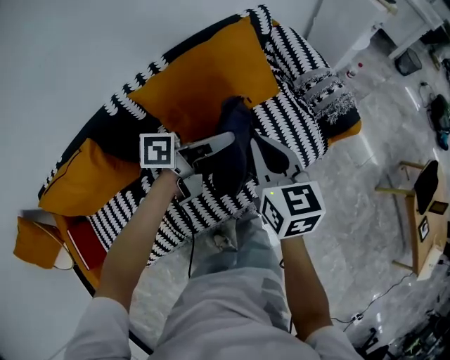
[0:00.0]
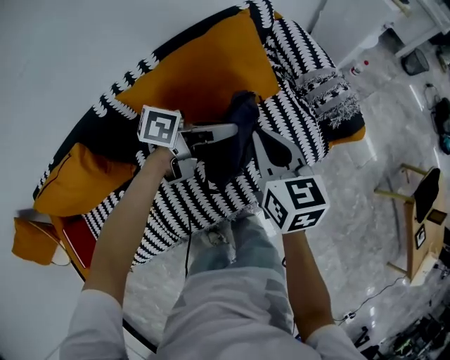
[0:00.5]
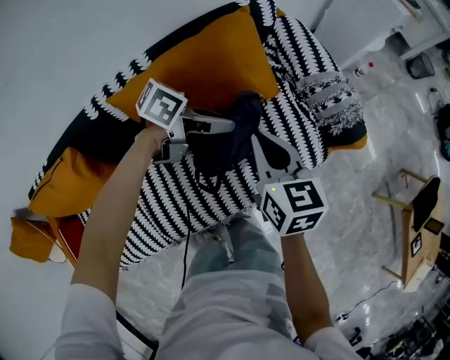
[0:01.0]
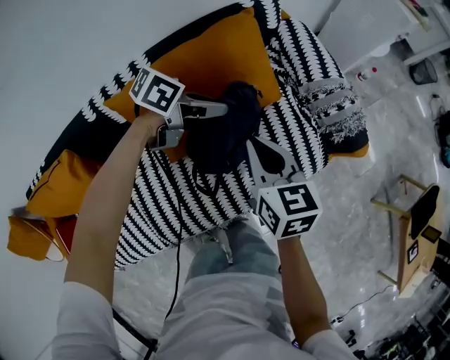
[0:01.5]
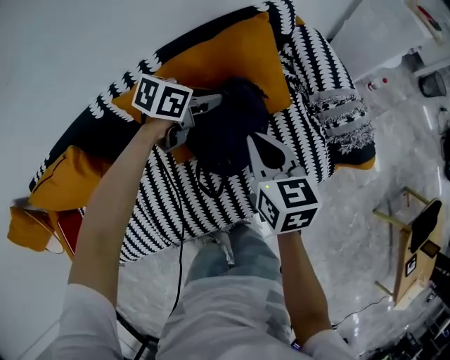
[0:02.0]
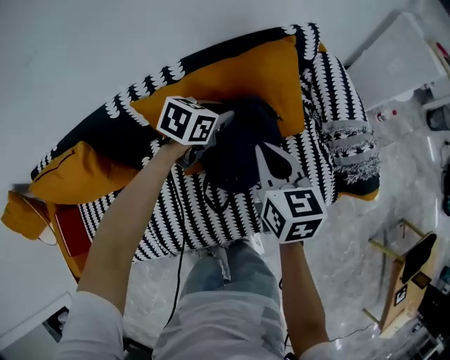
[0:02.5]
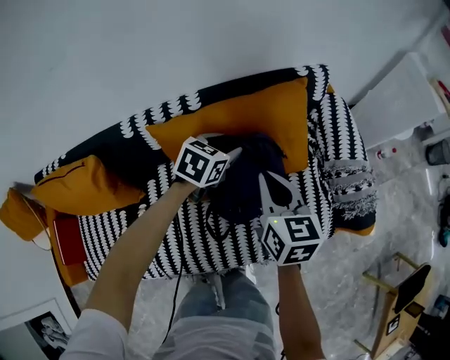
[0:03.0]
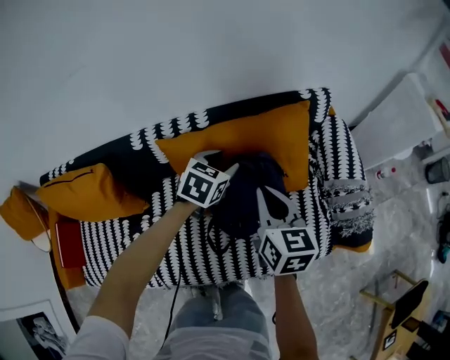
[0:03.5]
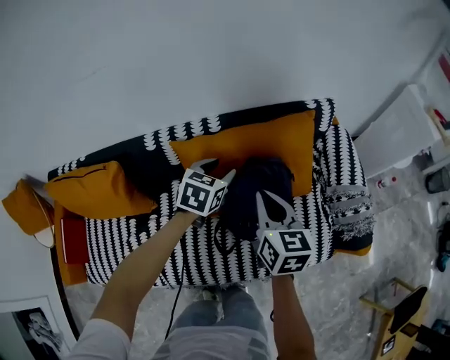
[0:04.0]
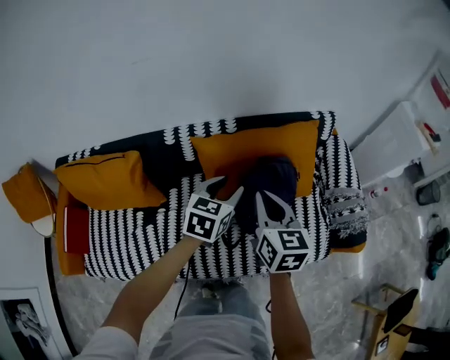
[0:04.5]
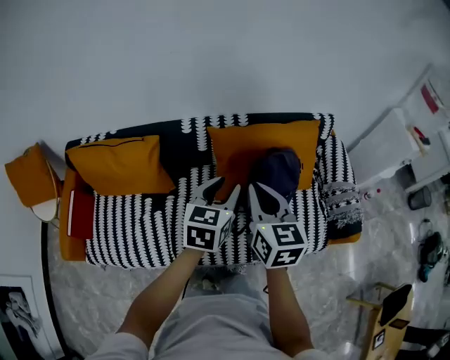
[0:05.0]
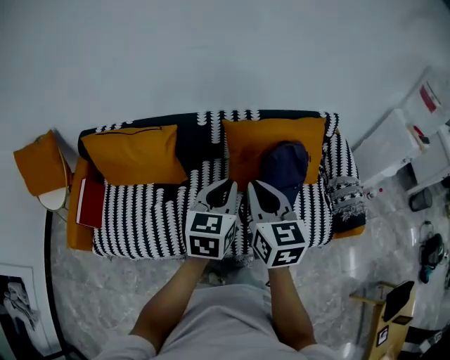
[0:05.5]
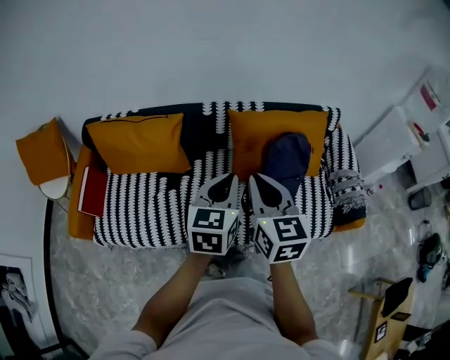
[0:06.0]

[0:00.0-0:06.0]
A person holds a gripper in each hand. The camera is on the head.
0:00.0 to 0:02.0: The right gripper travels forward, downward and to the left by about 15 cm; the left gripper moves forward, downward and to the left, some 25 cm, and points its fingers about 30 degrees further downward.
0:02.0 to 0:04.0: The left gripper ends up roughly 15 cm from where it was, turns by approximately 40 degrees, and opens, while the right gripper moves roughly 10 cm.
0:04.0 to 0:06.0: The left gripper travels backward, upward and to the left by roughly 40 cm, rotates some 30 degrees, and closes, while the right gripper travels backward, to the left and upward by approximately 35 cm.

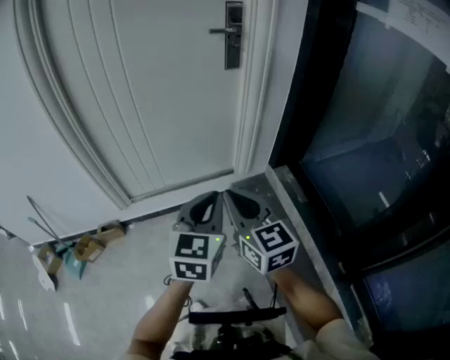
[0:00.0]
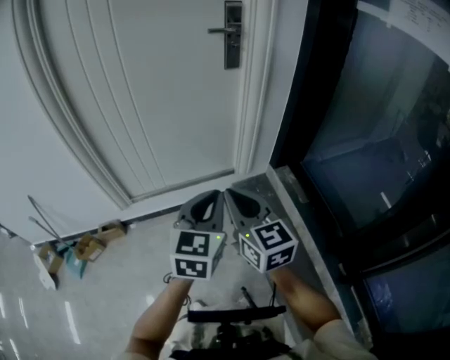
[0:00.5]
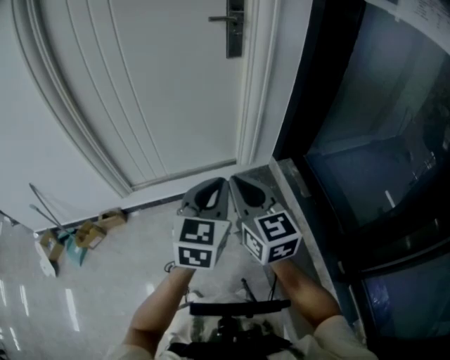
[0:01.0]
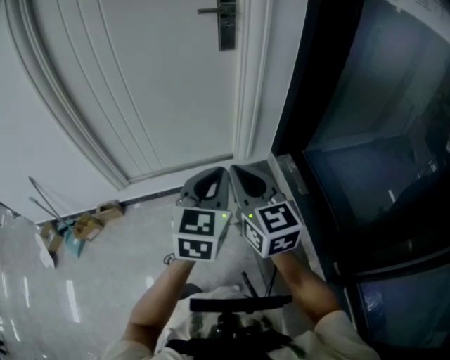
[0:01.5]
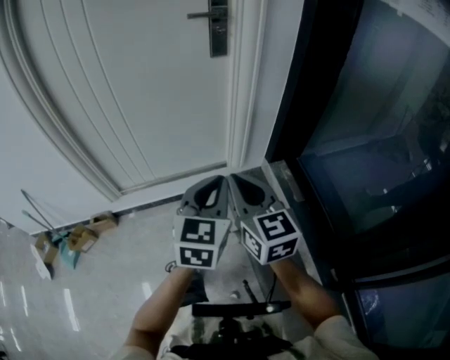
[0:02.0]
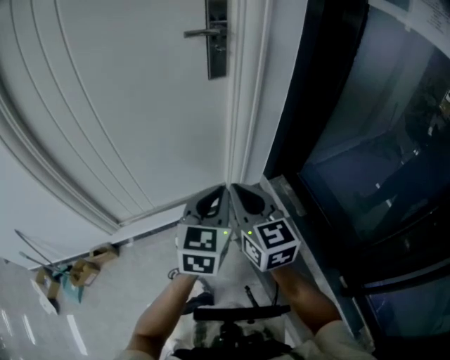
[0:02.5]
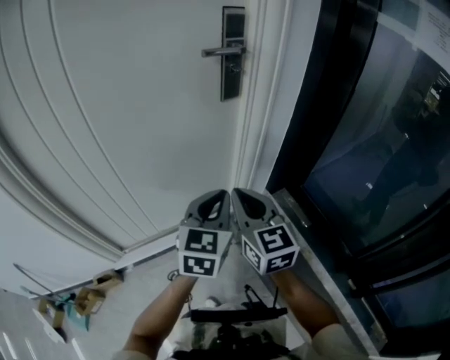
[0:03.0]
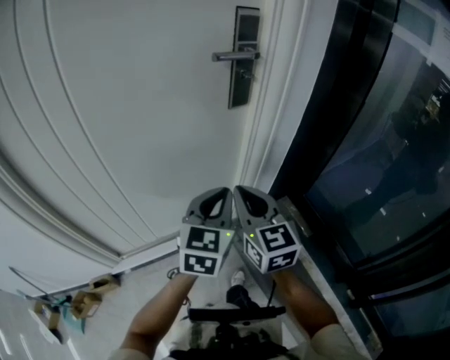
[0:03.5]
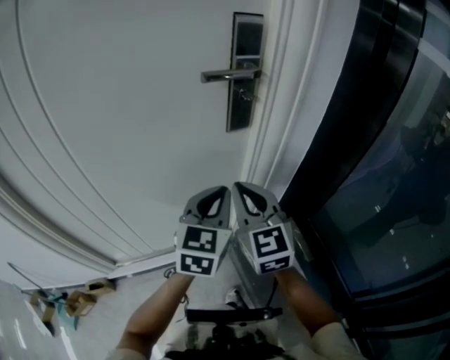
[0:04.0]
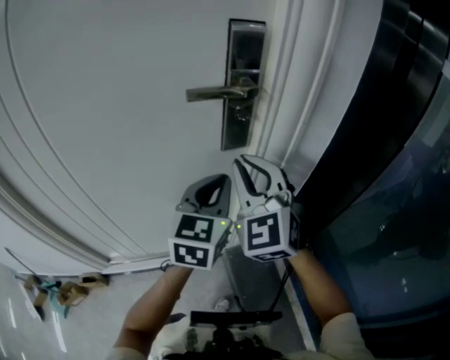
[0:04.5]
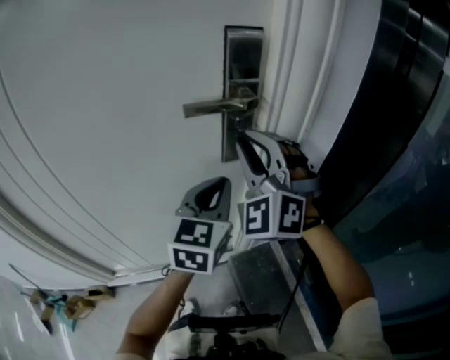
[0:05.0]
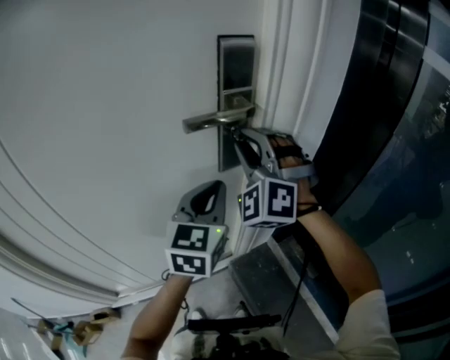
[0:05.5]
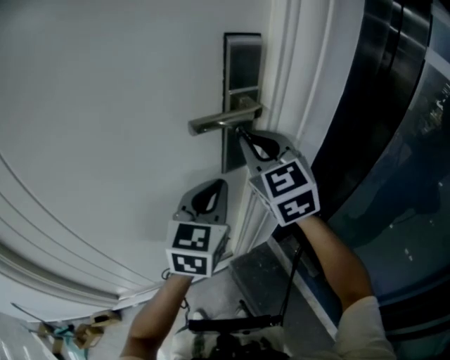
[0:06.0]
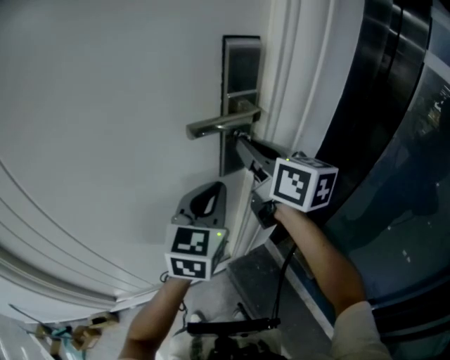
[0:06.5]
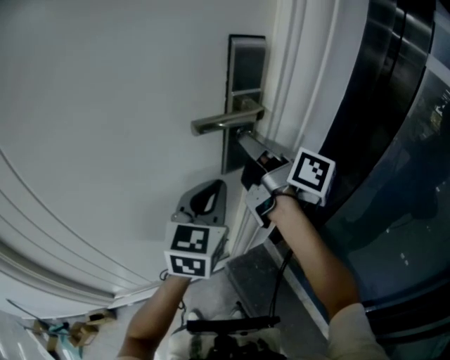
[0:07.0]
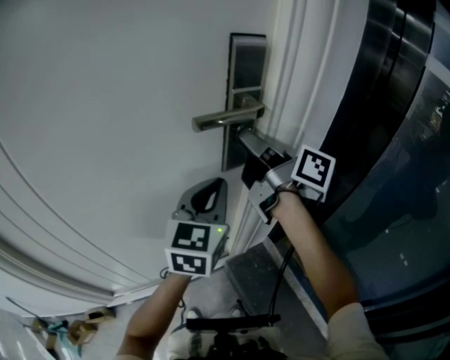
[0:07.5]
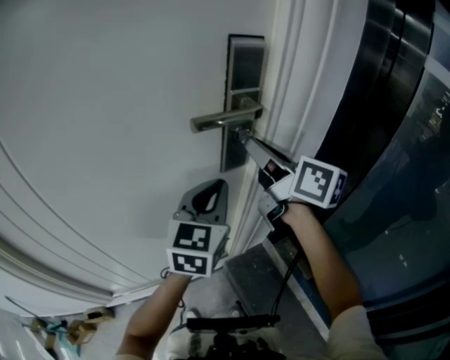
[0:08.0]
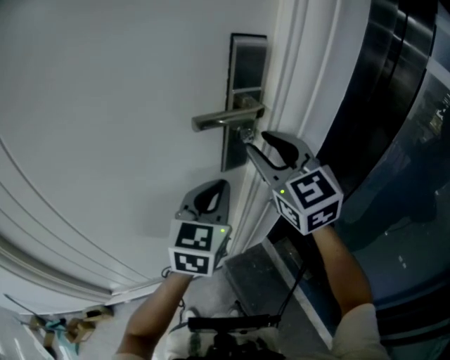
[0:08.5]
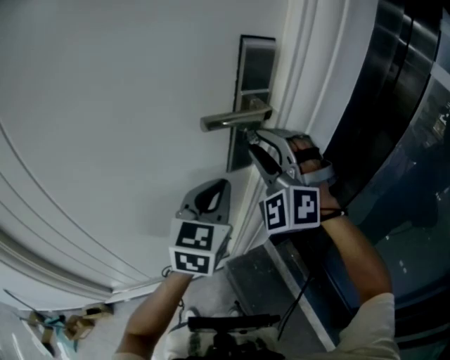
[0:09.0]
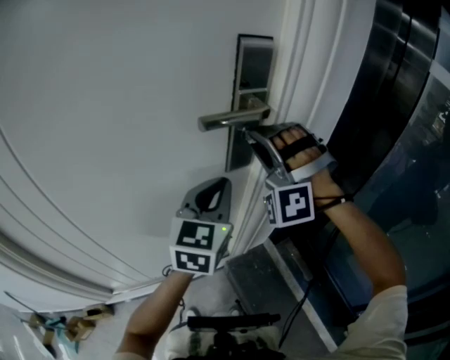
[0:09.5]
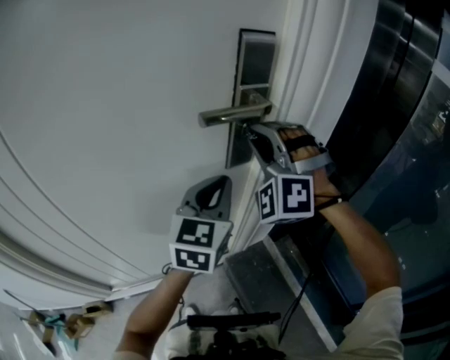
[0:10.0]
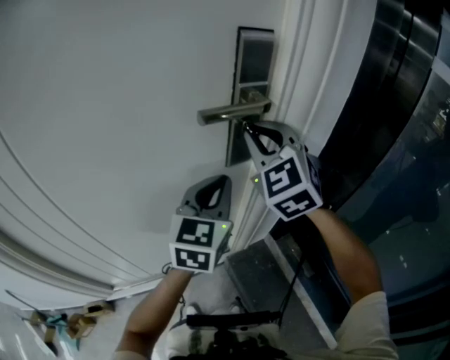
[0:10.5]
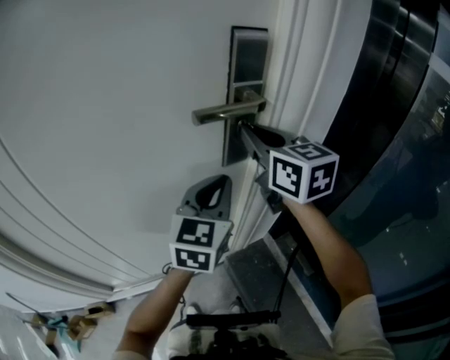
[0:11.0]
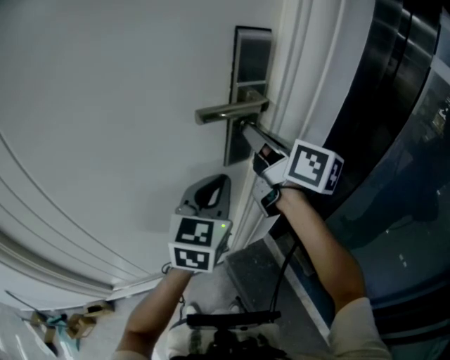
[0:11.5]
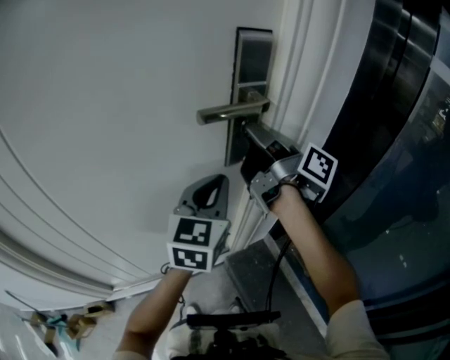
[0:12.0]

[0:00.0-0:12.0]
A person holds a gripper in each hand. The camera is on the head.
0:00.0 to 0:02.0: Both grippers move to the right and forward, some 10 cm.
0:02.0 to 0:04.0: Both grippers move forward, some 30 cm.
0:04.0 to 0:06.0: The right gripper travels forward and upward by about 20 cm. Meanwhile the left gripper heads forward and upward, covering approximately 15 cm.
0:06.0 to 0:08.0: The right gripper rolls clockwise, seen from behind, by about 60 degrees.
0:08.0 to 0:10.0: The right gripper rotates around the line of its fingers by about 120 degrees, counterclockwise from behind.
0:10.0 to 0:12.0: The right gripper rotates around the line of its fingers by roughly 160 degrees, clockwise from behind.

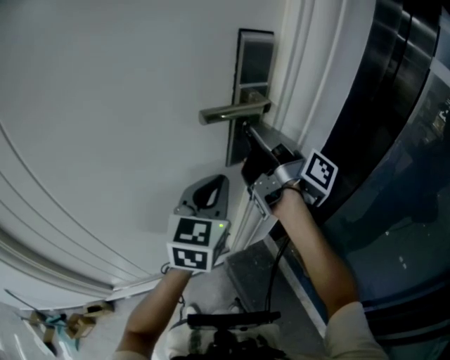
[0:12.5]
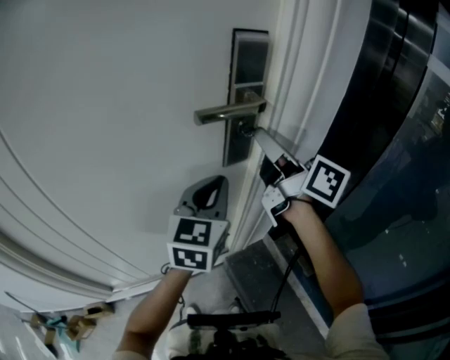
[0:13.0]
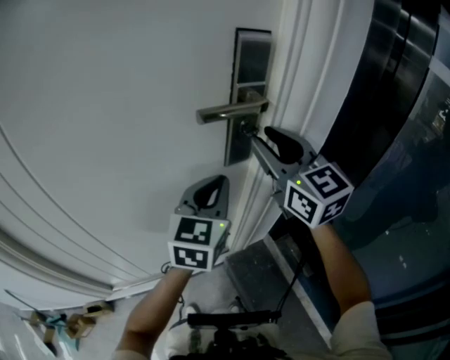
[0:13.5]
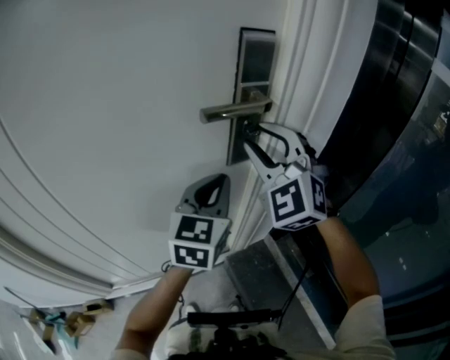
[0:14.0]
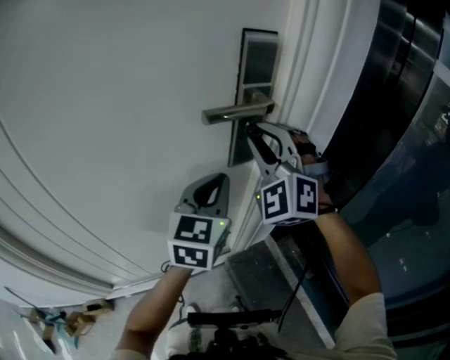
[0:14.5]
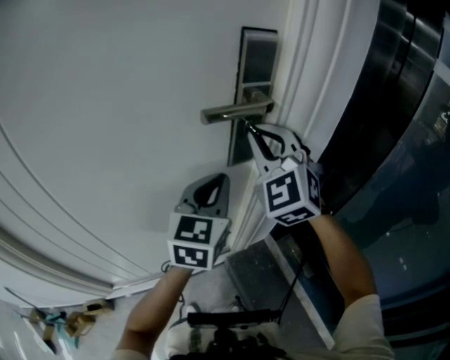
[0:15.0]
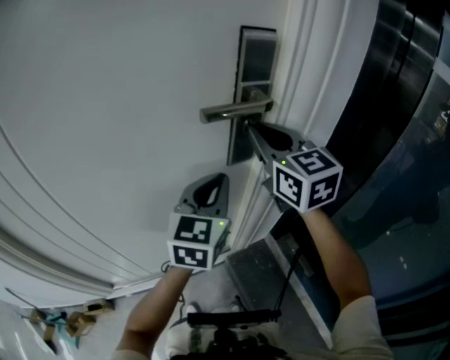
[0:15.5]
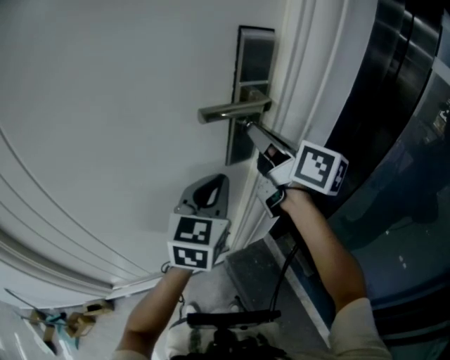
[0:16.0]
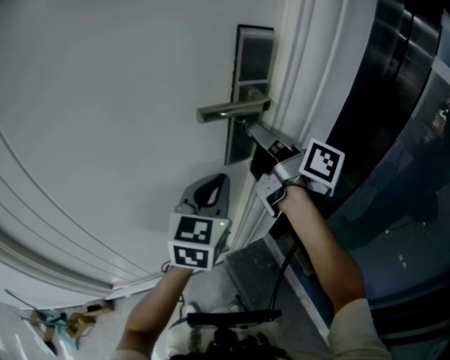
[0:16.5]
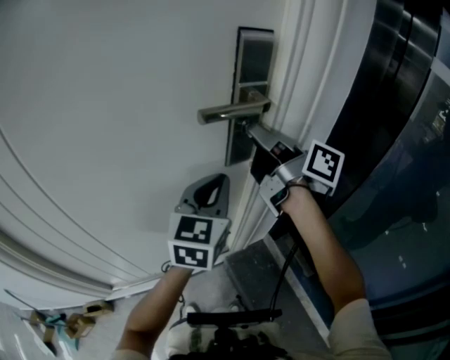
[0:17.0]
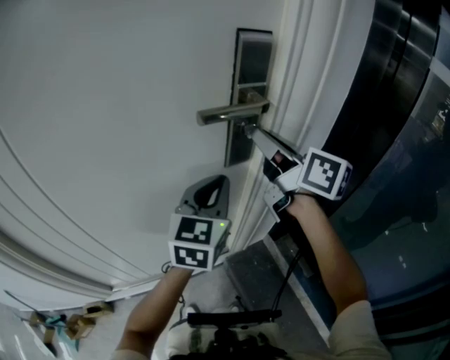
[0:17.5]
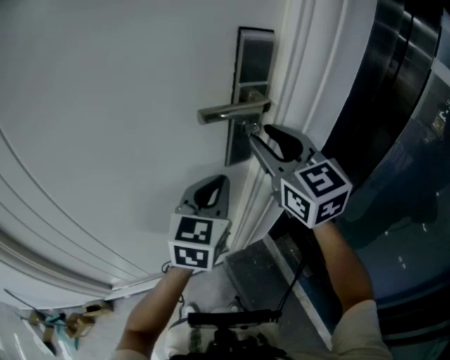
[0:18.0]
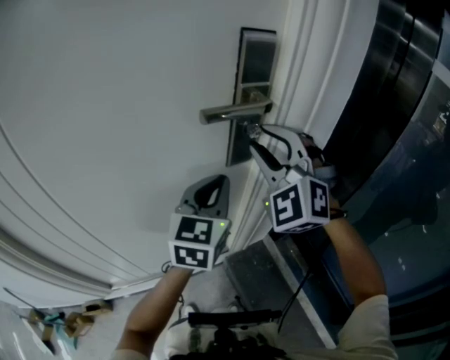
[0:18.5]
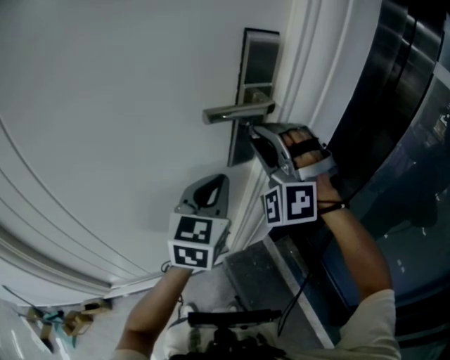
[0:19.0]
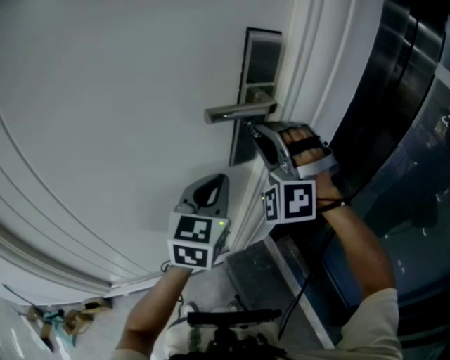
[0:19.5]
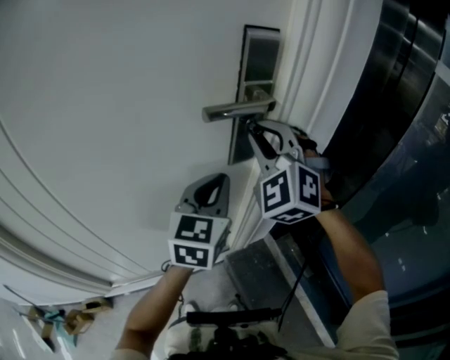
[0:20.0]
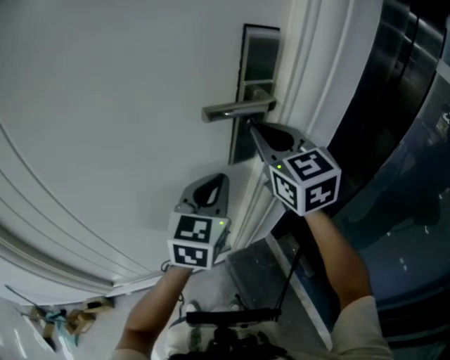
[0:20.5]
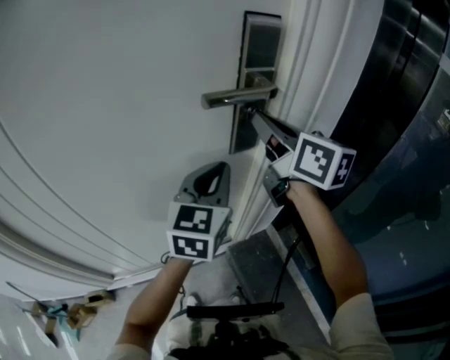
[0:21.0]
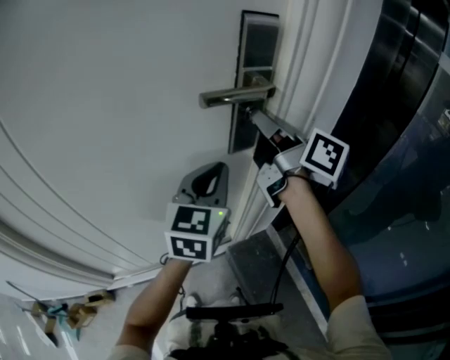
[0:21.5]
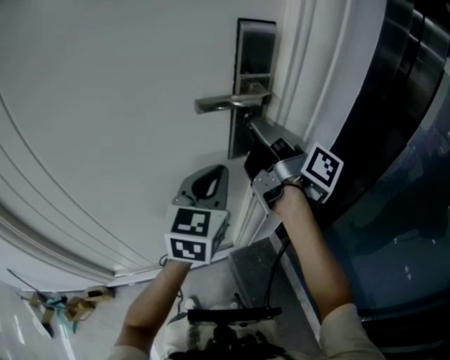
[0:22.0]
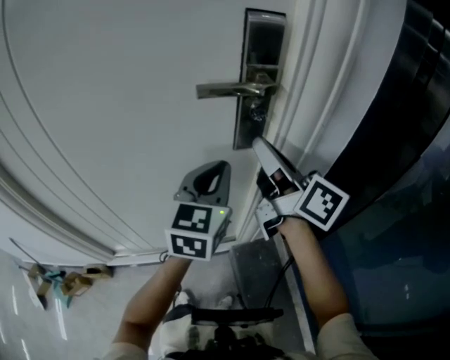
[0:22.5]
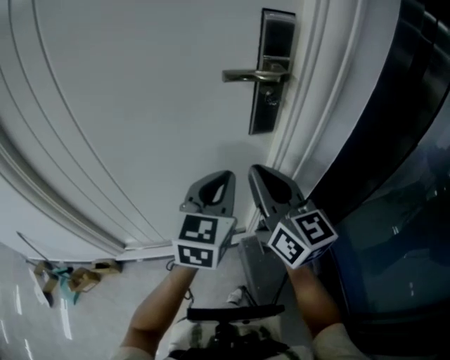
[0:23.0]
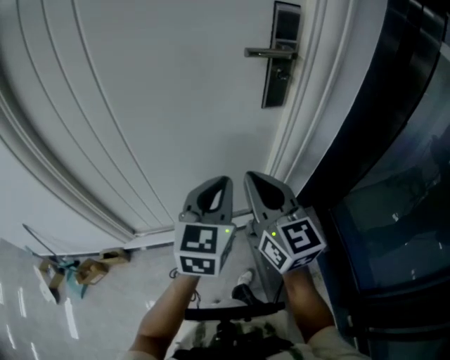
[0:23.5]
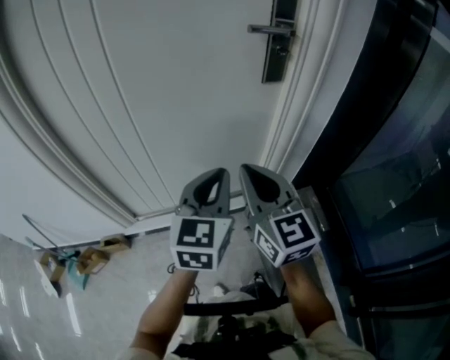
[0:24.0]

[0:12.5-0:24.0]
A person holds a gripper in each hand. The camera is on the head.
0:12.5 to 0:14.5: The right gripper rolls counterclockwise, seen from behind, by roughly 140 degrees.
0:14.5 to 0:16.5: The right gripper rotates around the line of its fingers by roughly 130 degrees, clockwise from behind.
0:16.5 to 0:18.5: The right gripper twists about 120 degrees counterclockwise, seen from behind, and opens up.
0:20.0 to 0:22.0: The right gripper rolls clockwise, seen from behind, by some 130 degrees.
0:22.0 to 0:24.0: The left gripper is displaced backward and to the left by some 30 cm, while the right gripper travels backward, to the left and downward by about 35 cm, and rolls counterclockwise, seen from behind, by about 70 degrees.
